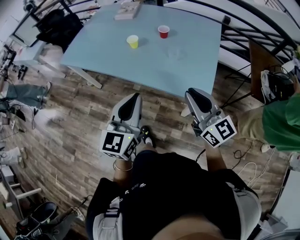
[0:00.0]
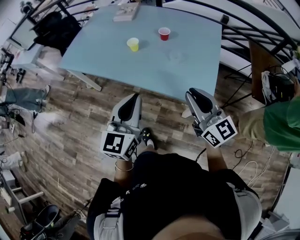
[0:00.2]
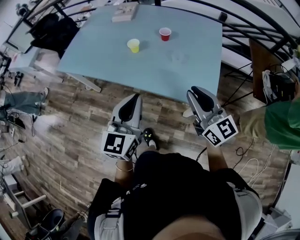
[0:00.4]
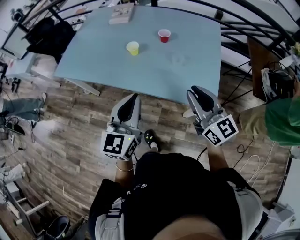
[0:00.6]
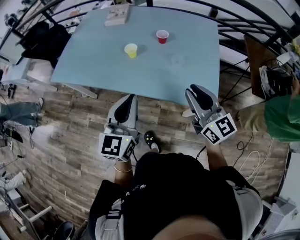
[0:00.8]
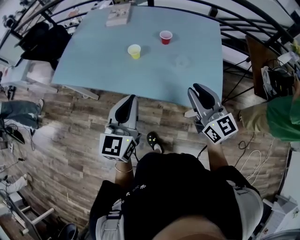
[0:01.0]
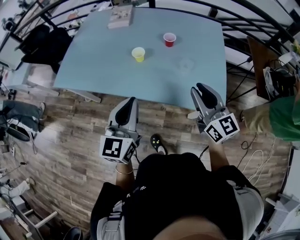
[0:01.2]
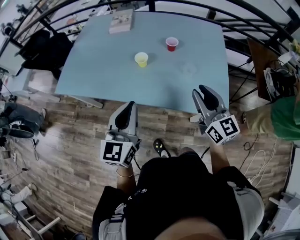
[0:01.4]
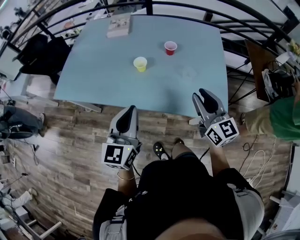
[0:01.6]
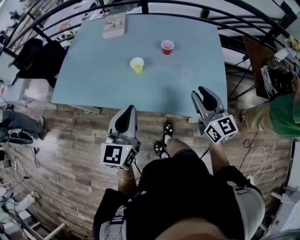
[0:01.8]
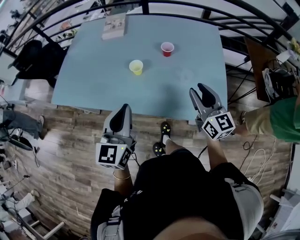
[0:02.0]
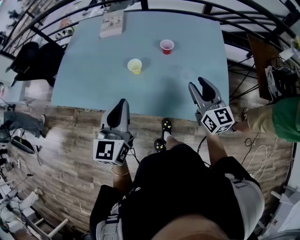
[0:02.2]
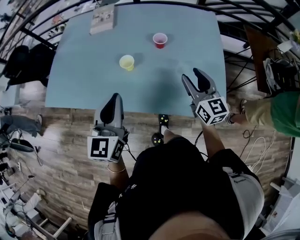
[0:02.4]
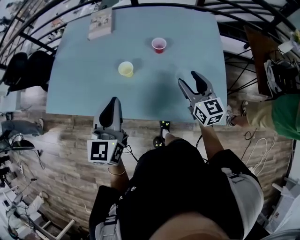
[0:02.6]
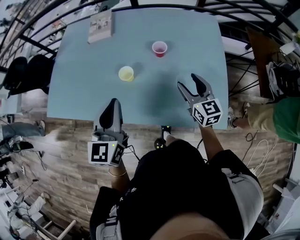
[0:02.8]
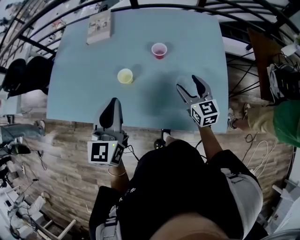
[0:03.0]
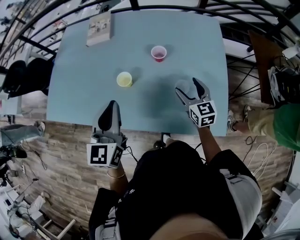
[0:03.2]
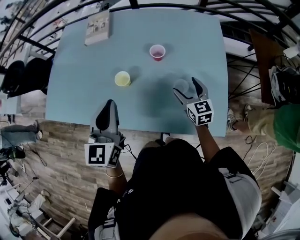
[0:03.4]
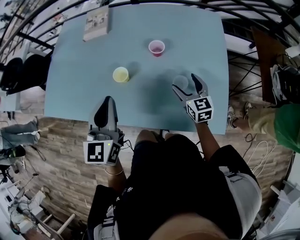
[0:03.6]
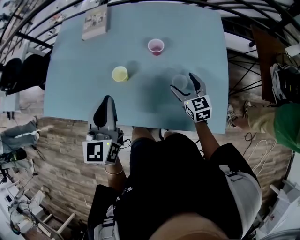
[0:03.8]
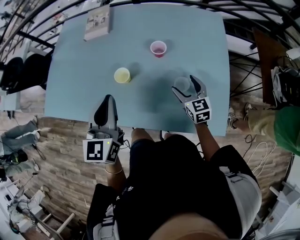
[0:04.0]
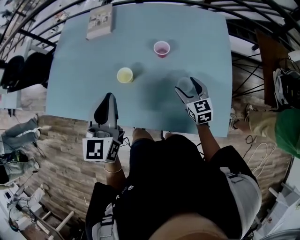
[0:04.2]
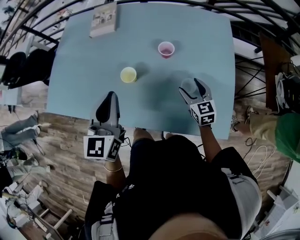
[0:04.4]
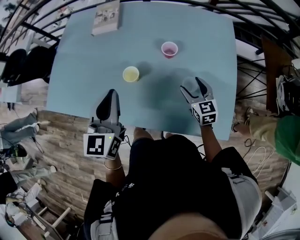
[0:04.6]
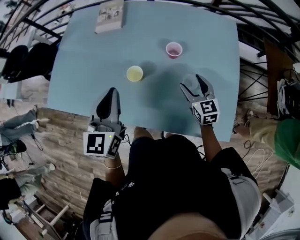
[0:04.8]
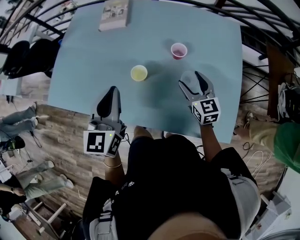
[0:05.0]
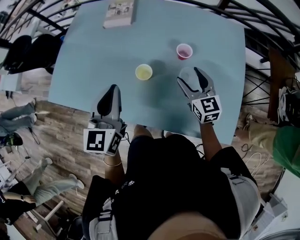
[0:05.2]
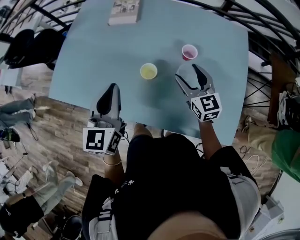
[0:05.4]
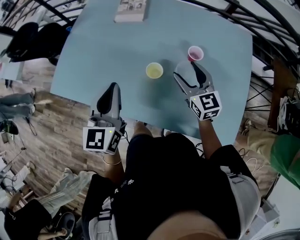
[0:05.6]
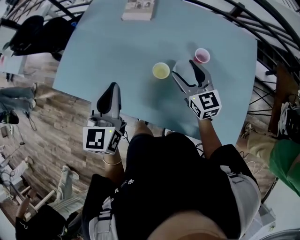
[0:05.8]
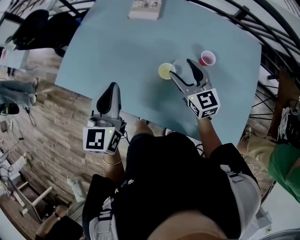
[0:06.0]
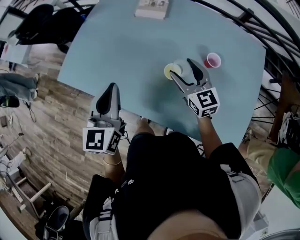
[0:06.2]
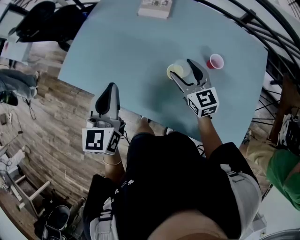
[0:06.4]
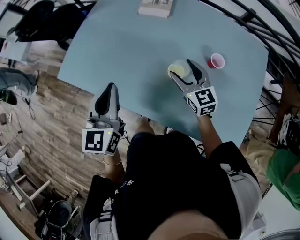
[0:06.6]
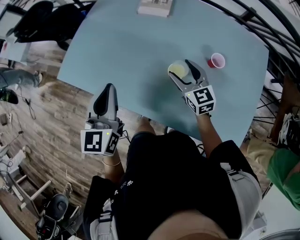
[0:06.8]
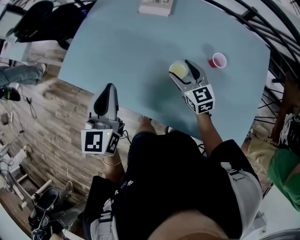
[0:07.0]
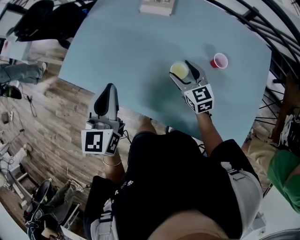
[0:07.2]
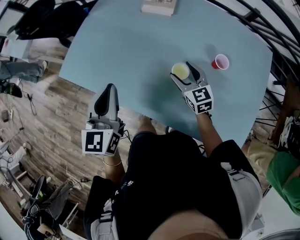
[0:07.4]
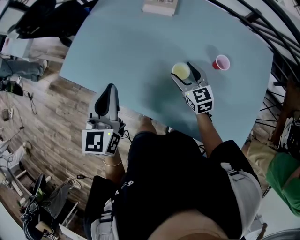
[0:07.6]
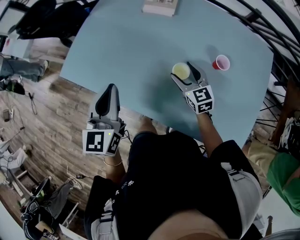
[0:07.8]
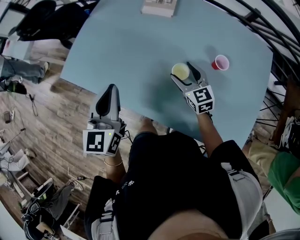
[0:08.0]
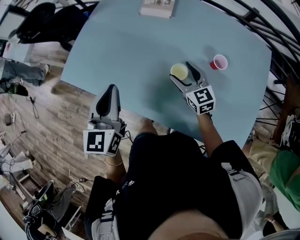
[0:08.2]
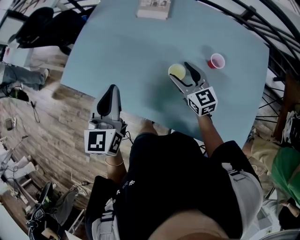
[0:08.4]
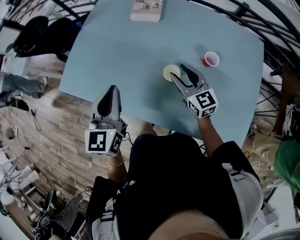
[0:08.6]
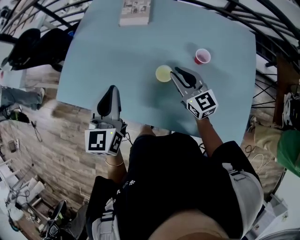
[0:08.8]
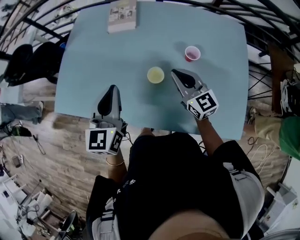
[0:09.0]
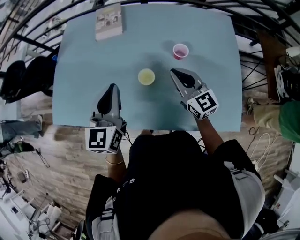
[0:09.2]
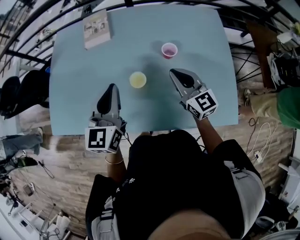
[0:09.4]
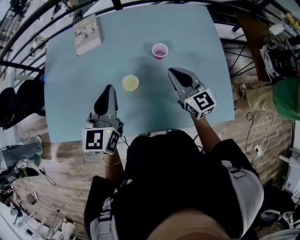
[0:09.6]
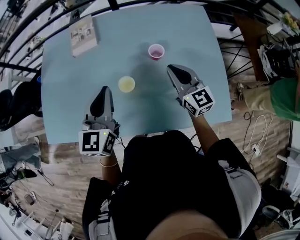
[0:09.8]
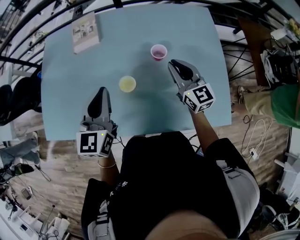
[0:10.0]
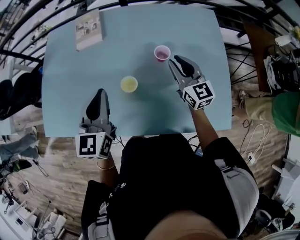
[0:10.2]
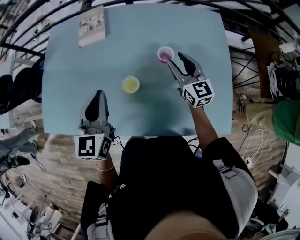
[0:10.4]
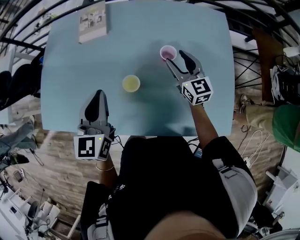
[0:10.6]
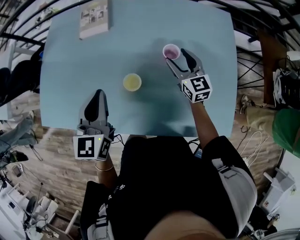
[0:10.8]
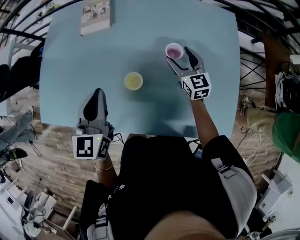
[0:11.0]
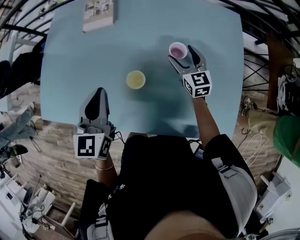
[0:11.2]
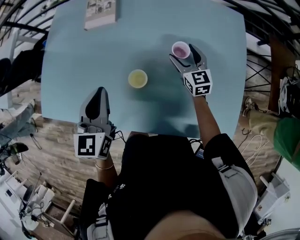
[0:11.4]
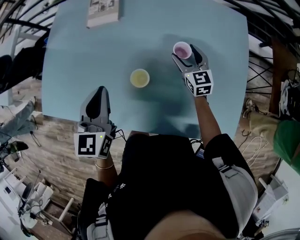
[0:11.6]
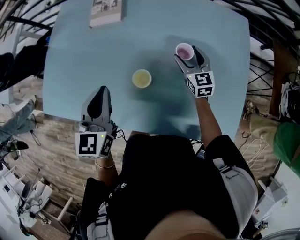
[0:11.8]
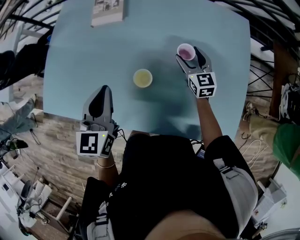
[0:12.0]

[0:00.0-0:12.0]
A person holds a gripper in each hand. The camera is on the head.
0:00.0 to 0:01.6: The grippers both shift forward and to the left by some 20 cm. The right gripper turns by about 20 degrees.
0:01.6 to 0:03.0: The left gripper moves forward, about 15 cm; the right gripper heads forward and downward, covering about 20 cm, and opens up.
0:03.0 to 0:04.4: The right gripper shifts about 5 cm downward.
0:04.4 to 0:06.0: The left gripper shifts some 15 cm to the left; the right gripper is displaced to the left, upward and forward by some 25 cm, and rotates approximately 20 degrees.
0:06.0 to 0:07.6: The right gripper heads downward, covering about 10 cm. The left gripper travels to the left by approximately 5 cm.
0:07.6 to 0:09.0: The right gripper travels upward and to the right by some 10 cm, and closes its fingers; the left gripper is displaced to the right by about 10 cm.
0:09.0 to 0:10.4: The left gripper travels to the right by approximately 5 cm. Meanwhile the right gripper is displaced to the right and forward by approximately 15 cm, and opens up.
0:10.4 to 0:12.0: The right gripper moves downward and forward, some 10 cm, and opens.

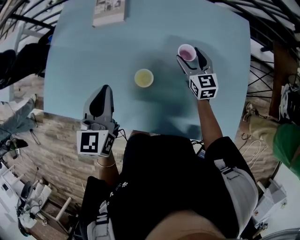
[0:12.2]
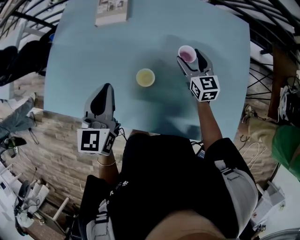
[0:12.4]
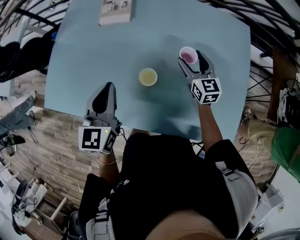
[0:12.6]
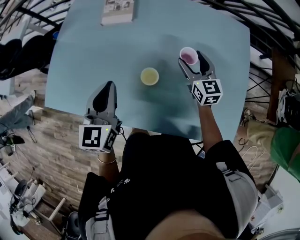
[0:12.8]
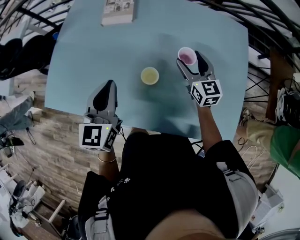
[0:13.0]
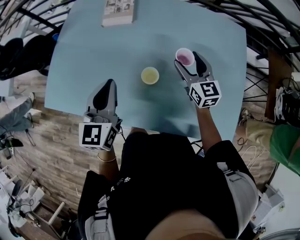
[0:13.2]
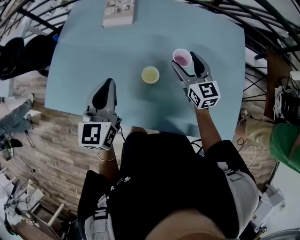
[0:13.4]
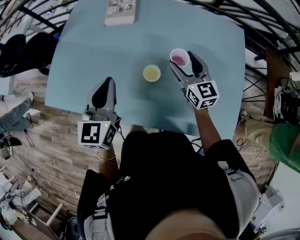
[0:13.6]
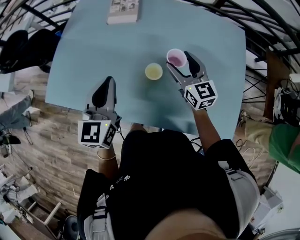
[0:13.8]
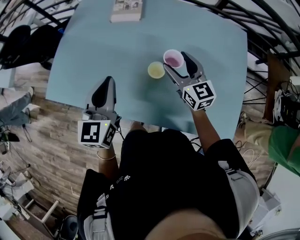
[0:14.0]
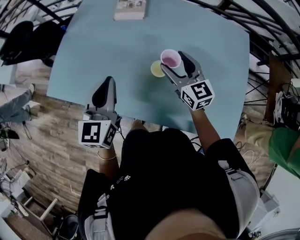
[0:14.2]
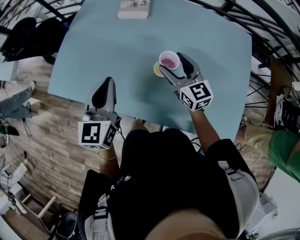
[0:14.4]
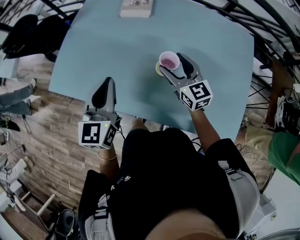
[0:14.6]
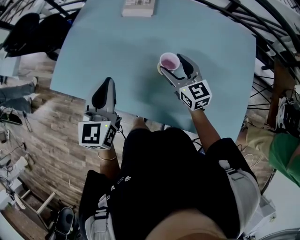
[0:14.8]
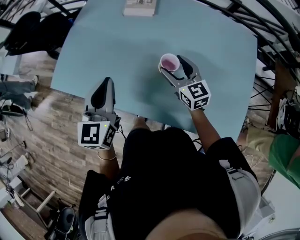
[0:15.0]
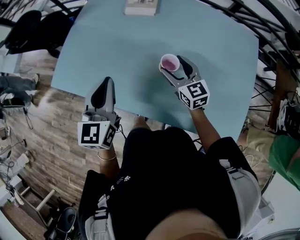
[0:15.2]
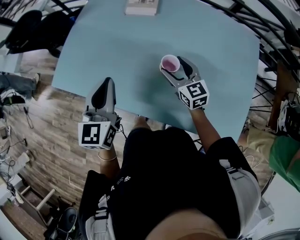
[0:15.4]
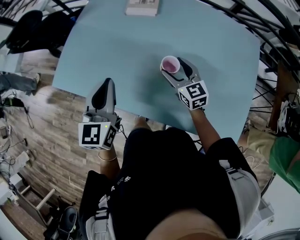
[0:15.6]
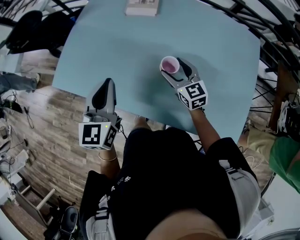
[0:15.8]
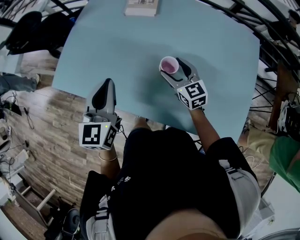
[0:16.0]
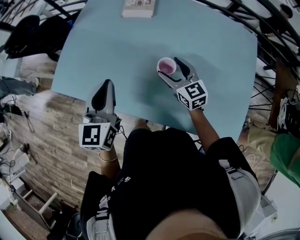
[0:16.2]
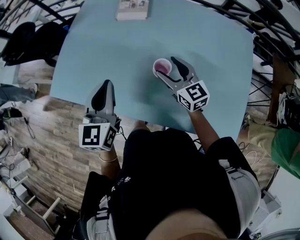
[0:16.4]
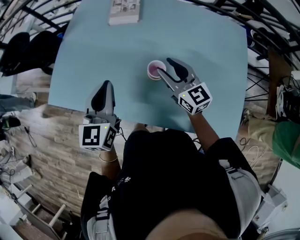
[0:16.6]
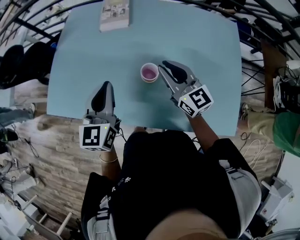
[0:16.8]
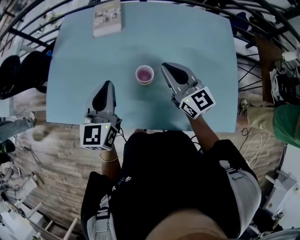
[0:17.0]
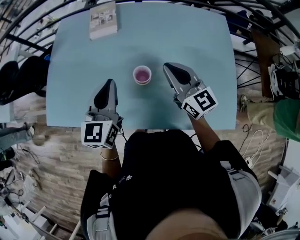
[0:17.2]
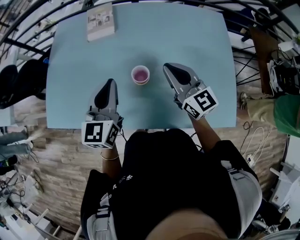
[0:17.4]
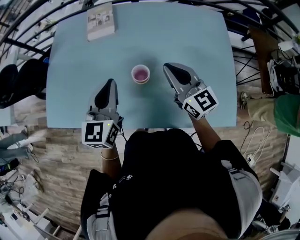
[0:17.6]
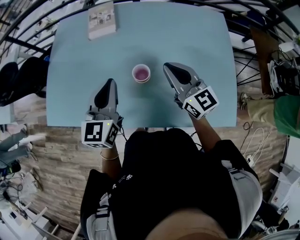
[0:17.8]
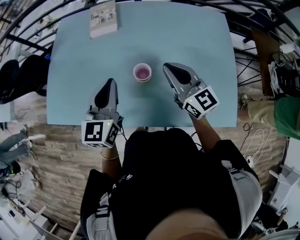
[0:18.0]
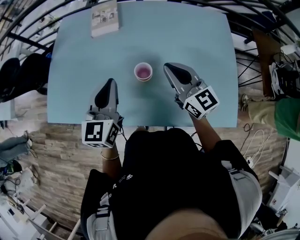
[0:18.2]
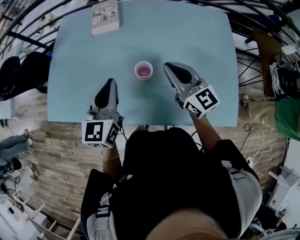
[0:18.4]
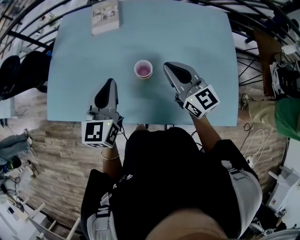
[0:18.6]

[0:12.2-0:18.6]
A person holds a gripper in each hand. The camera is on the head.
0:12.2 to 0:13.8: The right gripper moves to the left, upward and backward, about 15 cm, while the left gripper moves some 5 cm.
0:13.8 to 0:15.4: The left gripper travels to the left by some 5 cm. Meanwhile the right gripper shifts roughly 10 cm to the left and downward.
0:15.4 to 0:17.0: The left gripper travels to the right by some 10 cm; the right gripper heads upward and to the right, covering some 15 cm, turns by some 20 degrees, and closes its fingers.
0:17.0 to 0:18.6: The grippers move only a little.

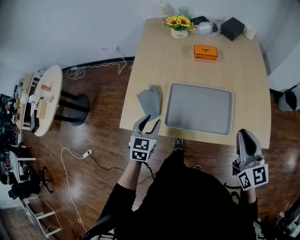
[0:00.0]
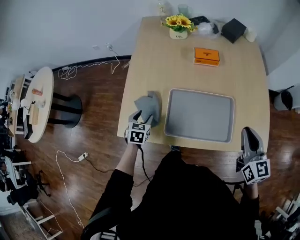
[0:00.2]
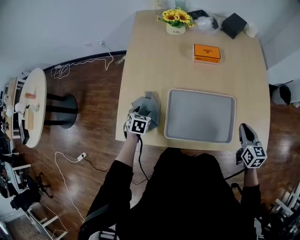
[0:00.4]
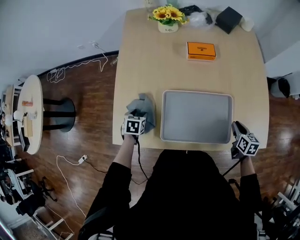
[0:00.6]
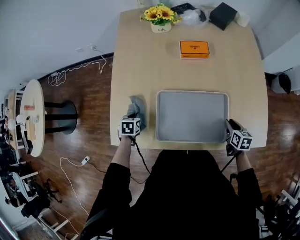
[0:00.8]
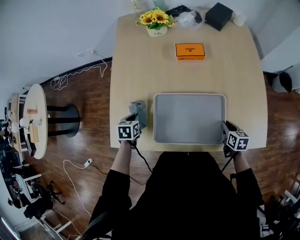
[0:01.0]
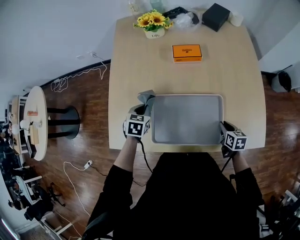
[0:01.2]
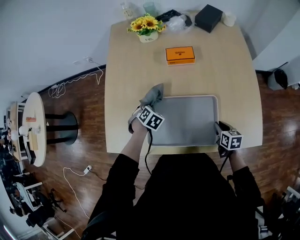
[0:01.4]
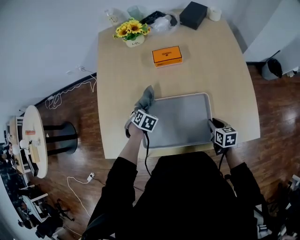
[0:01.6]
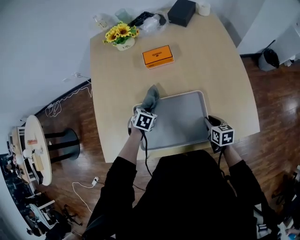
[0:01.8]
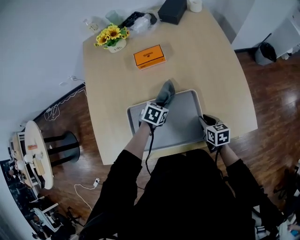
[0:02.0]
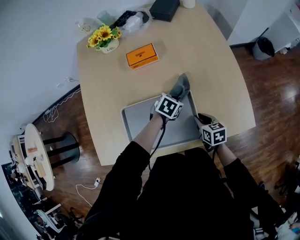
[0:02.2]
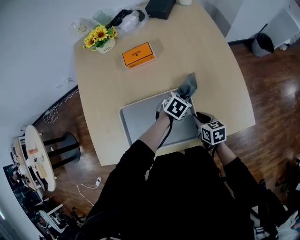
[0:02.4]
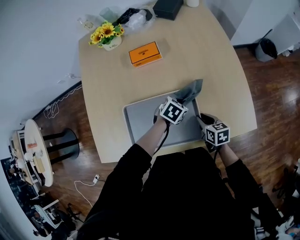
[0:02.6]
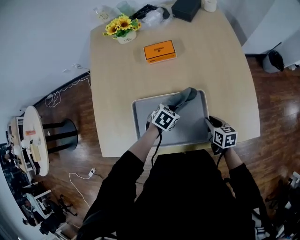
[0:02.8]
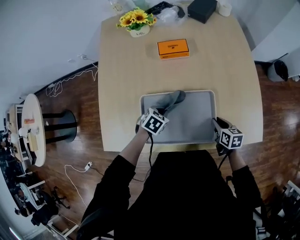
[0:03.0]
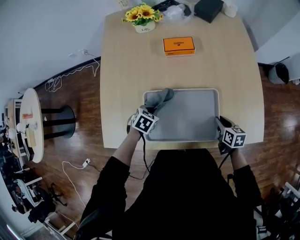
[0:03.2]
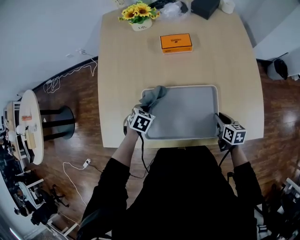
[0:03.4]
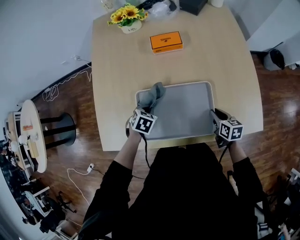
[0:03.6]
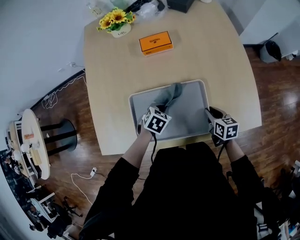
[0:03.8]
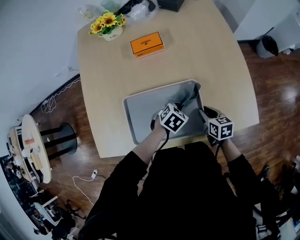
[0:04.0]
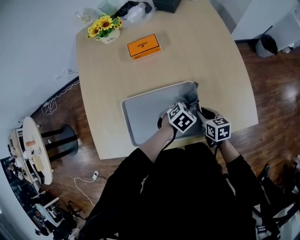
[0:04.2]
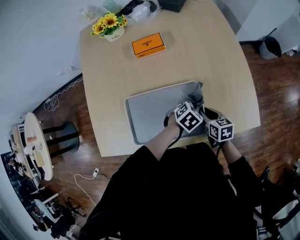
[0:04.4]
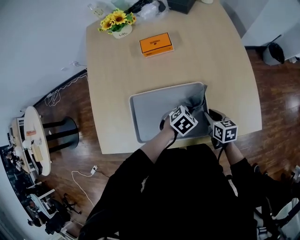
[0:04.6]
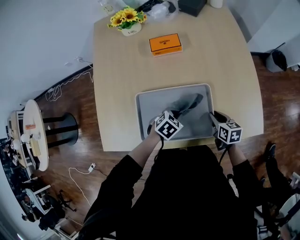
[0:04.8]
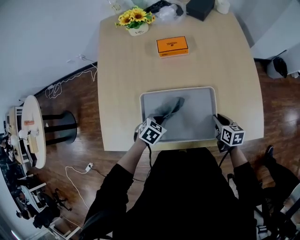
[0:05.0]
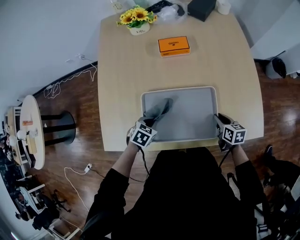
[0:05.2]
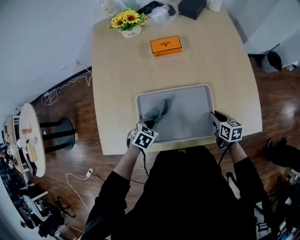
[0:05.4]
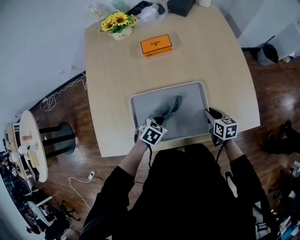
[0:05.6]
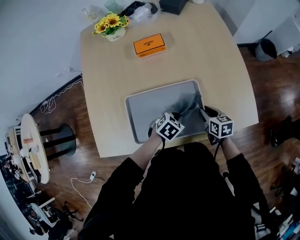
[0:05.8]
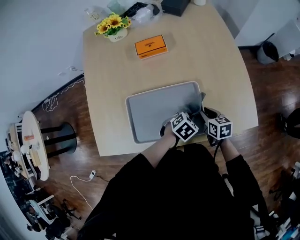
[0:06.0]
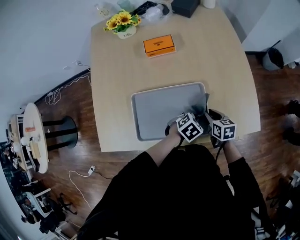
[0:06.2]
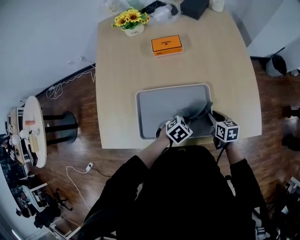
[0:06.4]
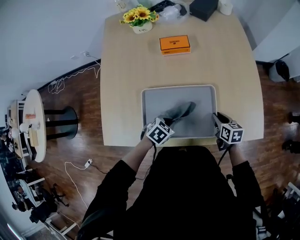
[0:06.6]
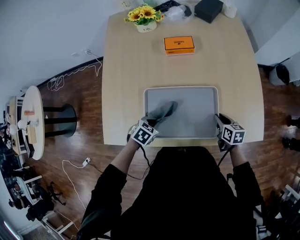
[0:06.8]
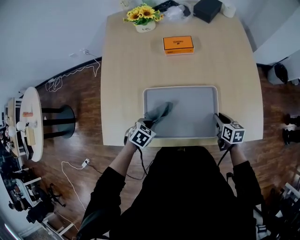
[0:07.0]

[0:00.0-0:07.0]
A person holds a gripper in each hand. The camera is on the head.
0:00.0 to 0:01.4: The left gripper travels forward and downward by approximately 25 cm, angles its fingers downward, by approximately 30 degrees, and closes. Meanwhile the right gripper travels downward by approximately 30 cm, and tilts its fingers roughly 40 degrees downward.
0:01.4 to 0:02.8: The left gripper rotates some 30 degrees.
0:02.8 to 0:04.2: The left gripper moves to the right, some 10 cm.
0:04.2 to 0:05.6: The left gripper travels to the left and backward by approximately 20 cm.
0:05.6 to 0:07.0: The left gripper moves backward, roughly 5 cm, and reaches about 20 cm to the right, then returns.
